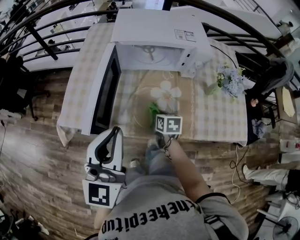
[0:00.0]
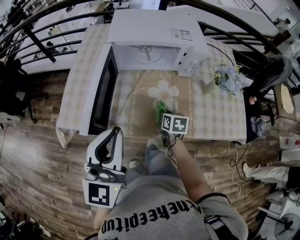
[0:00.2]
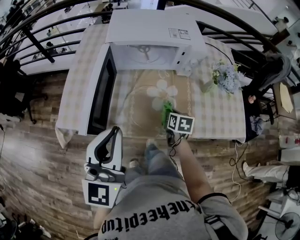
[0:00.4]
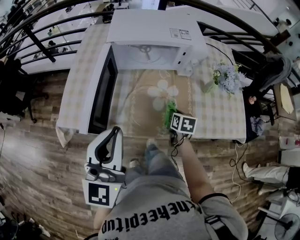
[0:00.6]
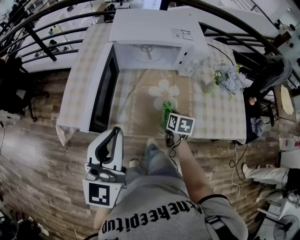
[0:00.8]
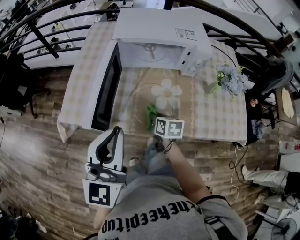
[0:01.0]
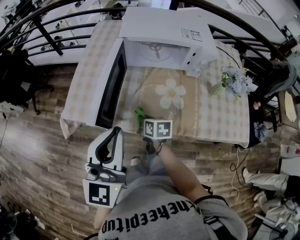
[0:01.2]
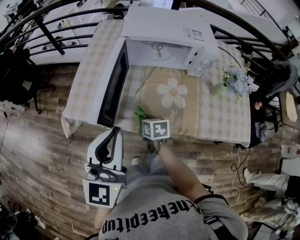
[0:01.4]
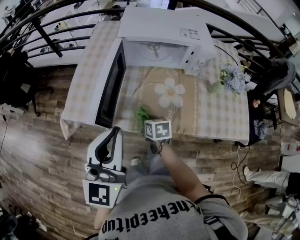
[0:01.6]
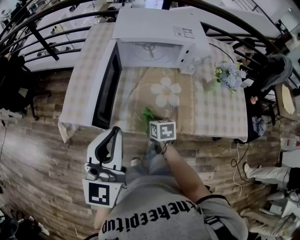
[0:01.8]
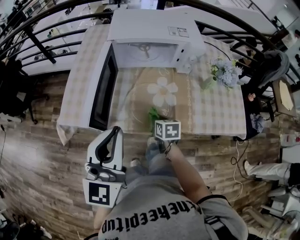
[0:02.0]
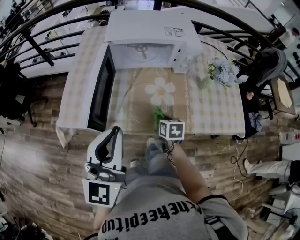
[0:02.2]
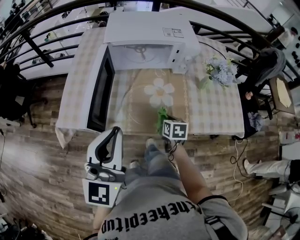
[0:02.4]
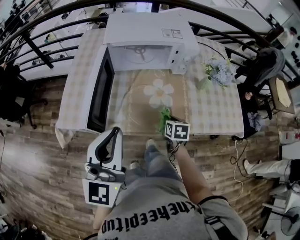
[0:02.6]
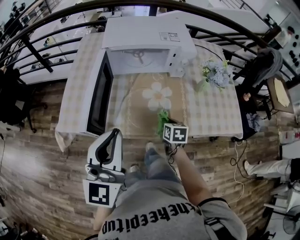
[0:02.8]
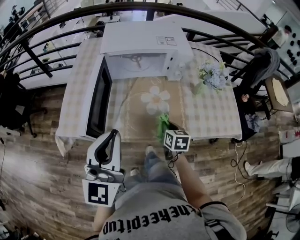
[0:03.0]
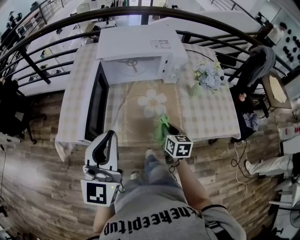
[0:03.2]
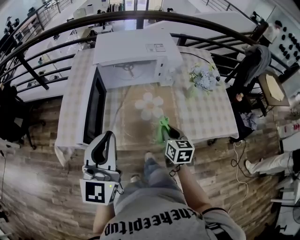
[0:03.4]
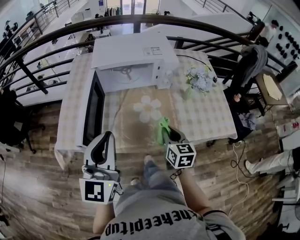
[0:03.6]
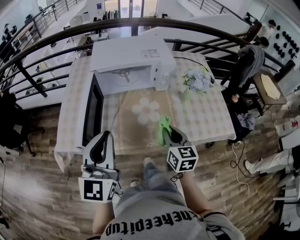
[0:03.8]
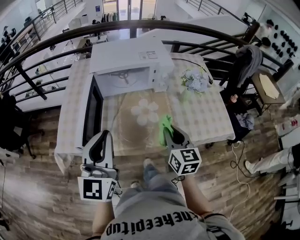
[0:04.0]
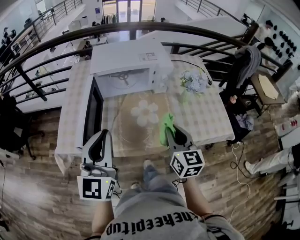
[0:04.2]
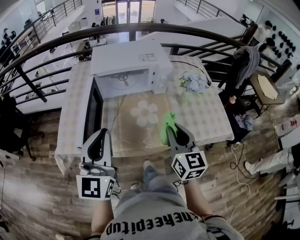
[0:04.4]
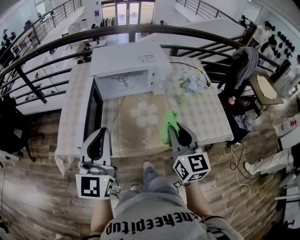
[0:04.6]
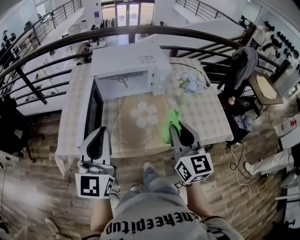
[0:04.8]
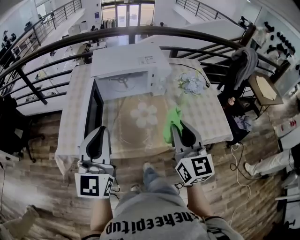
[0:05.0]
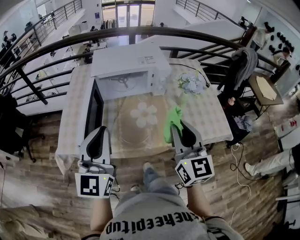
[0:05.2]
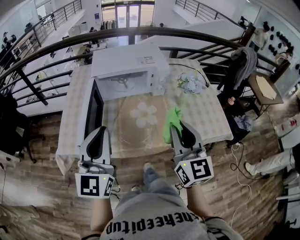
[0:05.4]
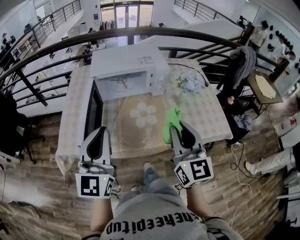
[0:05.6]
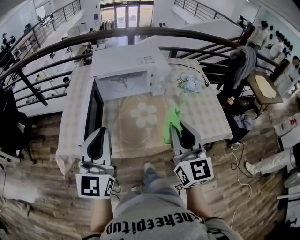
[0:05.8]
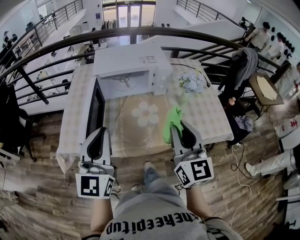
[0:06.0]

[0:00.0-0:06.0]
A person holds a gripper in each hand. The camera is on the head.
0.0 to 1.6 s: The right gripper travels to the left by roughly 10 cm.
1.6 to 3.0 s: The right gripper shifts roughly 15 cm to the right, and rotates approximately 20 degrees.
3.0 to 4.4 s: The right gripper heads upward, covering about 25 cm, and angles its fingers upward, by about 30 degrees.
4.4 to 6.0 s: The right gripper travels upward by some 10 cm.

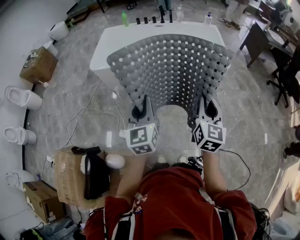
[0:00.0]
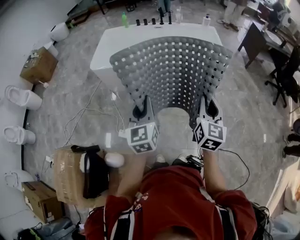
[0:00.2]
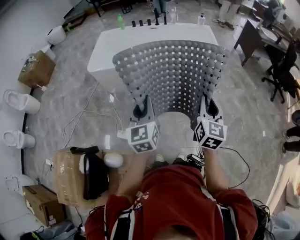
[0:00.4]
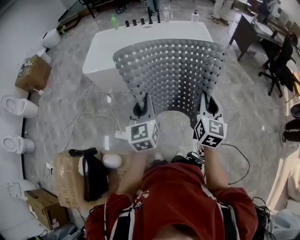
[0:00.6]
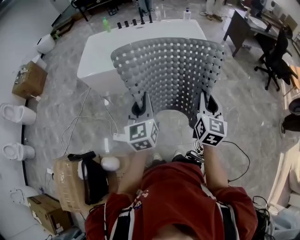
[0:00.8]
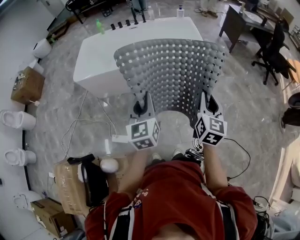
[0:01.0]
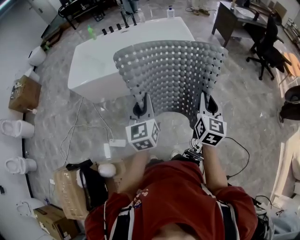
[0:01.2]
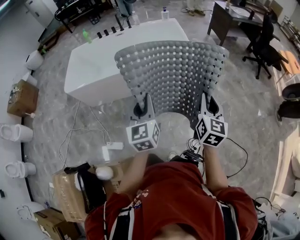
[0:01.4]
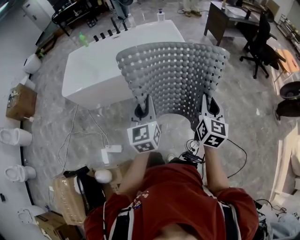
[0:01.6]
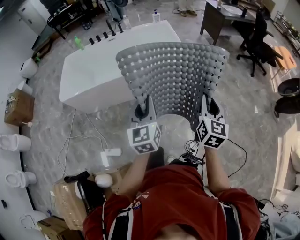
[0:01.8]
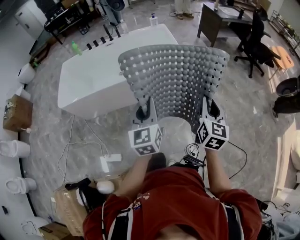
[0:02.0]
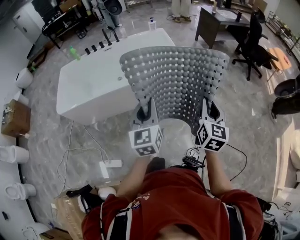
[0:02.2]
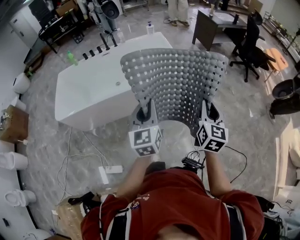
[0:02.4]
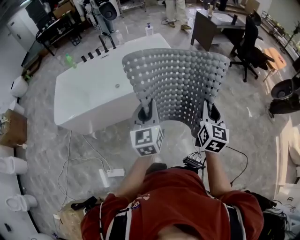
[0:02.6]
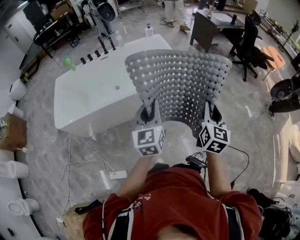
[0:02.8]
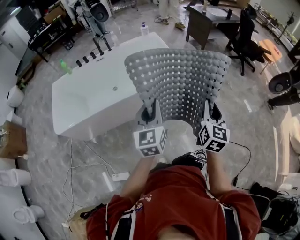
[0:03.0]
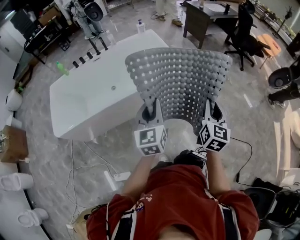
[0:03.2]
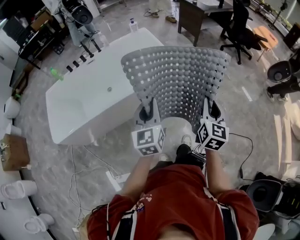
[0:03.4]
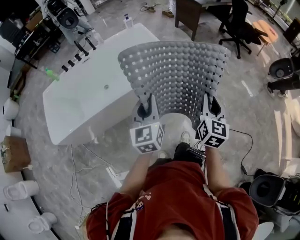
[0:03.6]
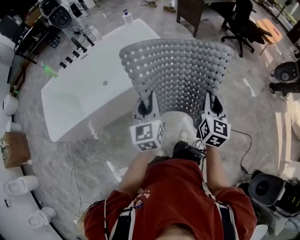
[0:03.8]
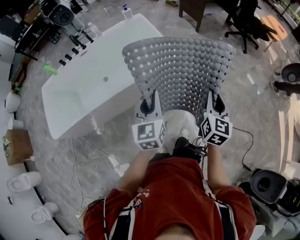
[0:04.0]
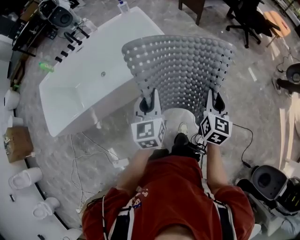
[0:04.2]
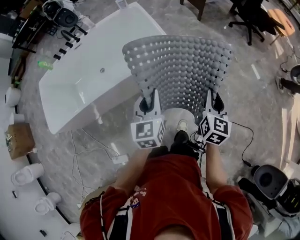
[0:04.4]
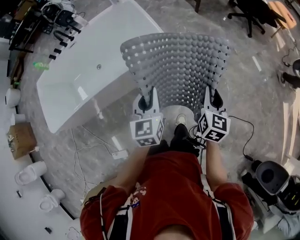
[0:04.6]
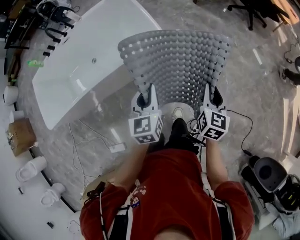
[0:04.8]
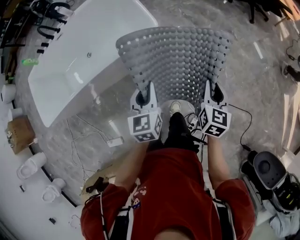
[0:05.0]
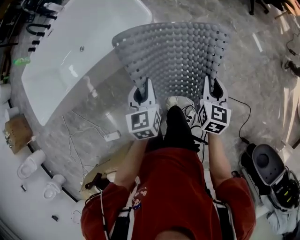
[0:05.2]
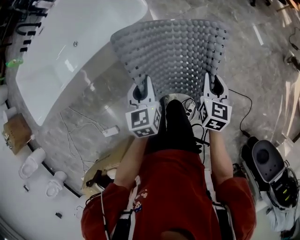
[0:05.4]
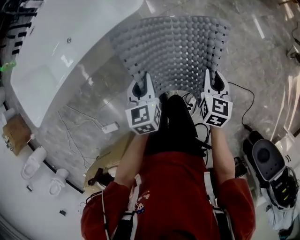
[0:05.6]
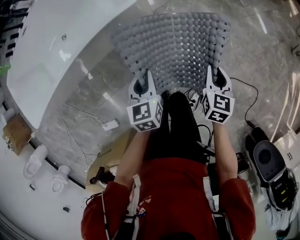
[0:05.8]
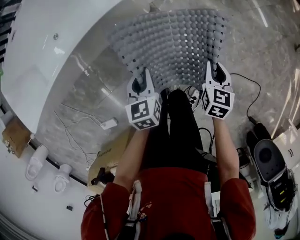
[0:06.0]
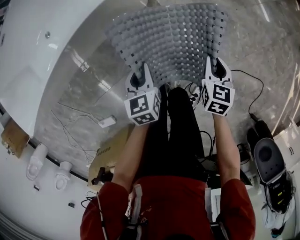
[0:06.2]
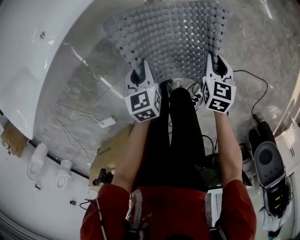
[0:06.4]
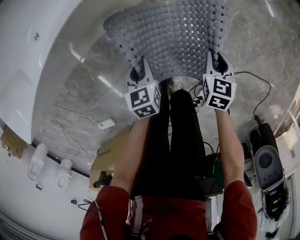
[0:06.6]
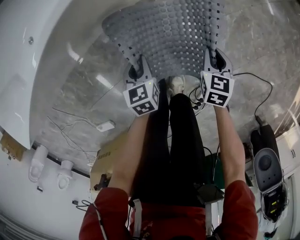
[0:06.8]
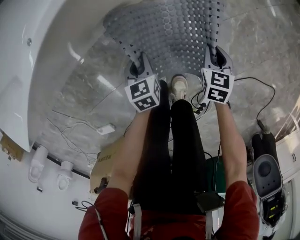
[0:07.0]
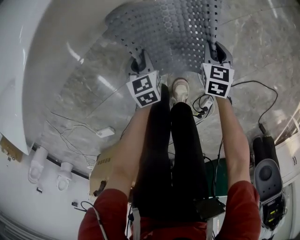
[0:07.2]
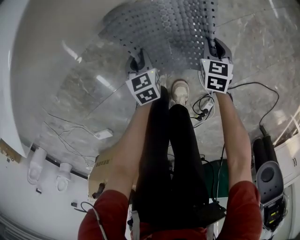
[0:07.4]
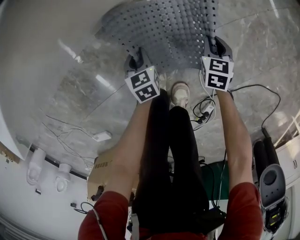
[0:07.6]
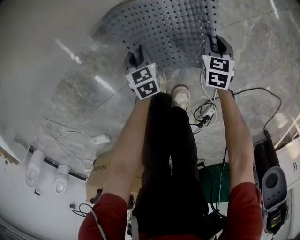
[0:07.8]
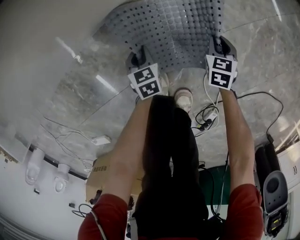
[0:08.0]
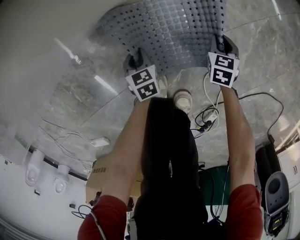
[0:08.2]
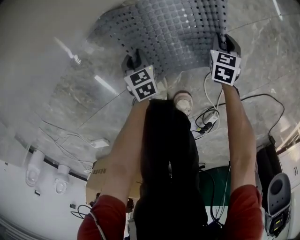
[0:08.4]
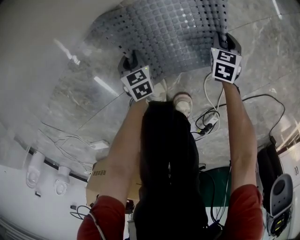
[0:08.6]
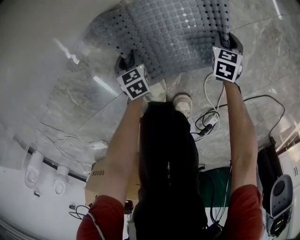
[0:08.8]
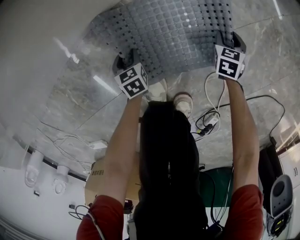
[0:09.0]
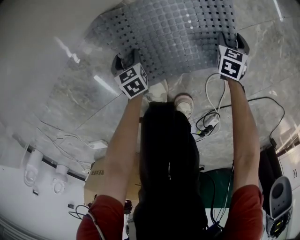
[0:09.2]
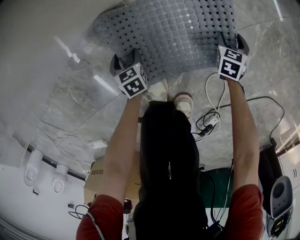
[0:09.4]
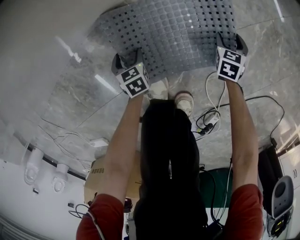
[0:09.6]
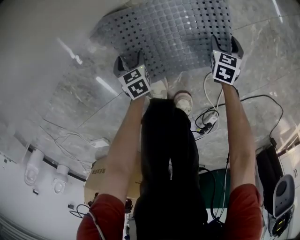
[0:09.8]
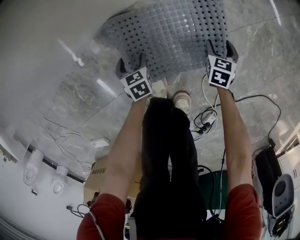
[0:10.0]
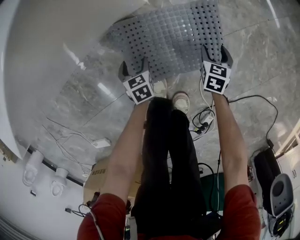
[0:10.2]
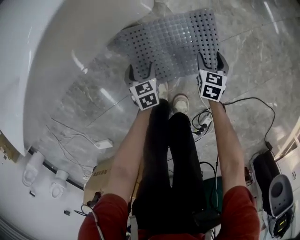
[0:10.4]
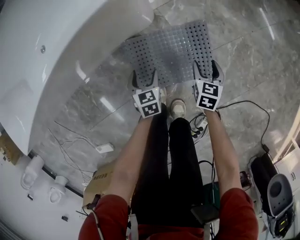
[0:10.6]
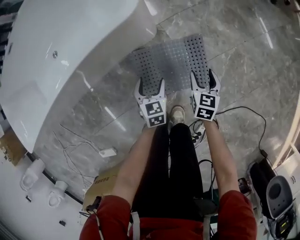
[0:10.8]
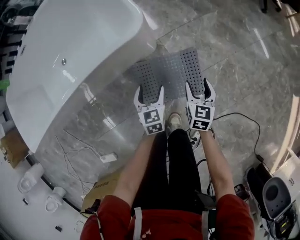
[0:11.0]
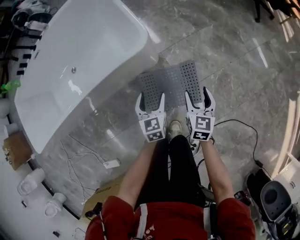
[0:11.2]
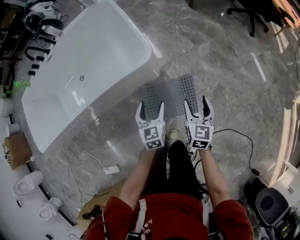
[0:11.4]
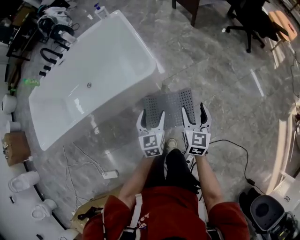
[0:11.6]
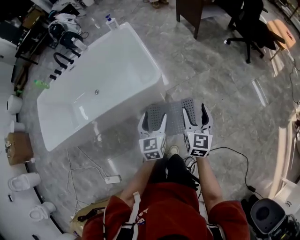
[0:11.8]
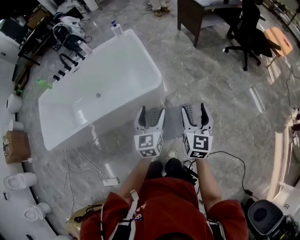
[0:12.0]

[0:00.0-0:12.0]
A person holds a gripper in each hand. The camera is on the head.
0.0 to 1.6 s: Both grippers travel together to the right, approximately 25 cm.
1.6 to 3.0 s: Both grippers travel together forward and to the left, approximately 15 cm.
3.0 to 4.4 s: Both grippers move forward, to the right and downward, approximately 25 cm.
4.4 to 6.0 s: The grippers both shift downward by approximately 40 cm. The right gripper changes its angle by about 30 degrees. The left gripper turns by about 30 degrees.
6.0 to 7.6 s: The two grippers go about 40 cm downward.
7.6 to 9.0 s: The left gripper goes some 15 cm downward and to the left, and opens up. The right gripper moves downward and to the right, some 15 cm, and opens up.
9.0 to 10.4 s: The two grippers go approximately 15 cm upward. The left gripper opens its fingers.
10.4 to 12.0 s: Both grippers travel together upward, some 70 cm. The left gripper points its fingers about 40 degrees further upward. Meanwhile the right gripper angles its fingers upward, by approximately 40 degrees.

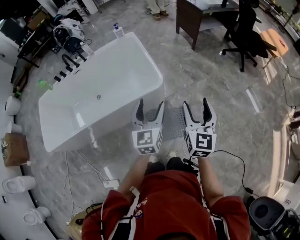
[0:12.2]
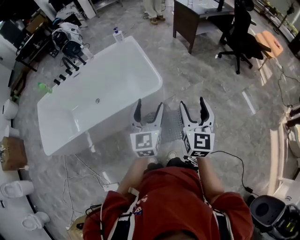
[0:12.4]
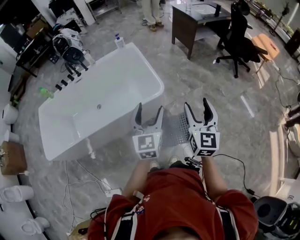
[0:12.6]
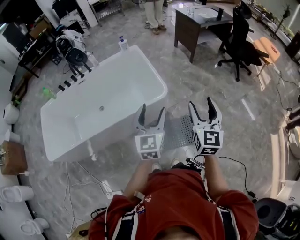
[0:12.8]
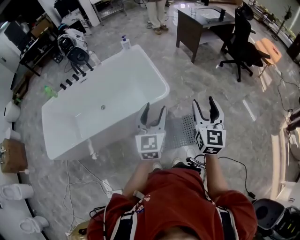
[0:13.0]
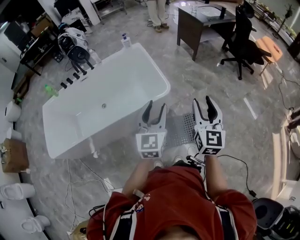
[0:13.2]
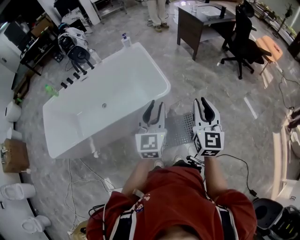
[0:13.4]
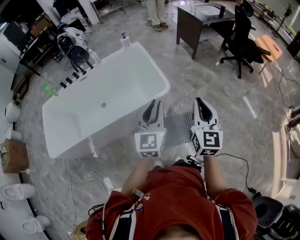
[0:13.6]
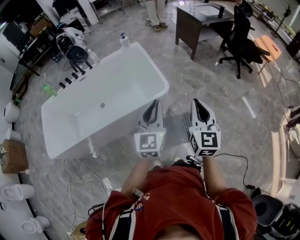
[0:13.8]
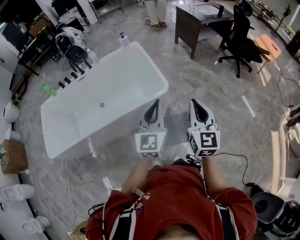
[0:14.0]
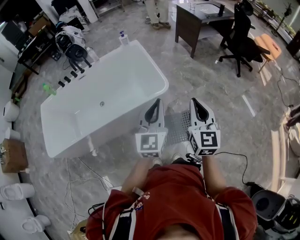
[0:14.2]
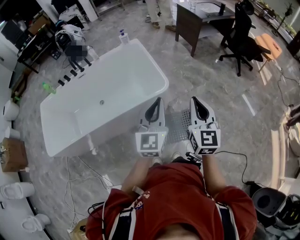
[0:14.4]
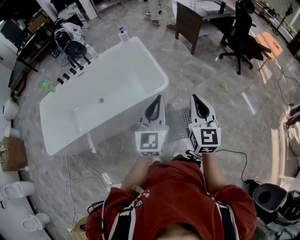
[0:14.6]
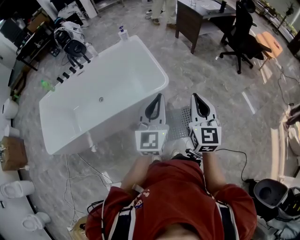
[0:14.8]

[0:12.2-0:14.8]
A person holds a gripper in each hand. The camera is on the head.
12.2 to 13.4 s: The left gripper travels upward by some 5 cm, and closes up, while the right gripper travels upward and to the left by about 10 cm, and closes up.
13.4 to 14.8 s: The grippers move only a little.

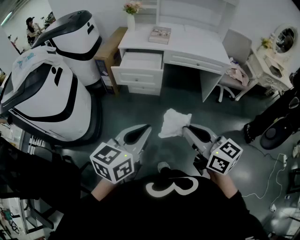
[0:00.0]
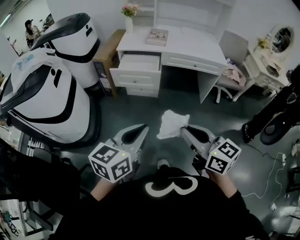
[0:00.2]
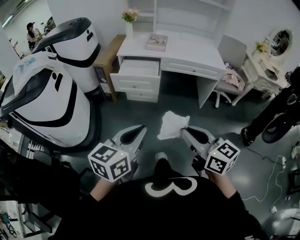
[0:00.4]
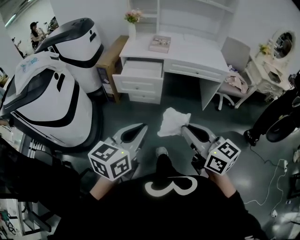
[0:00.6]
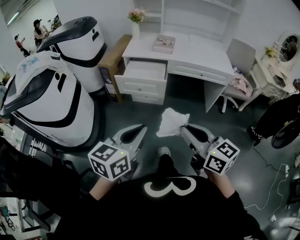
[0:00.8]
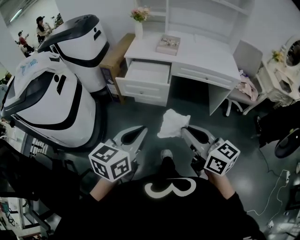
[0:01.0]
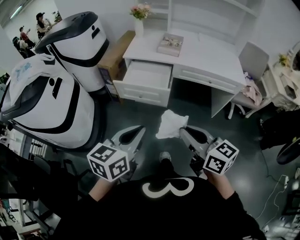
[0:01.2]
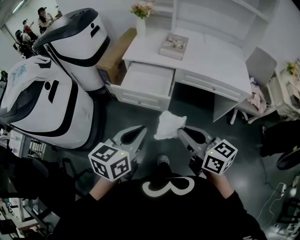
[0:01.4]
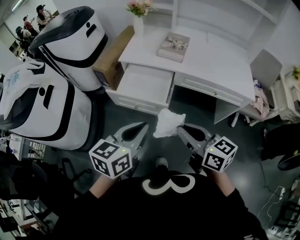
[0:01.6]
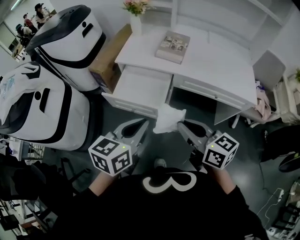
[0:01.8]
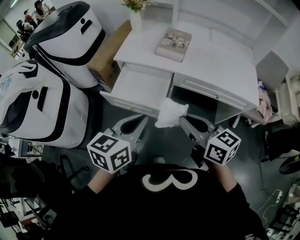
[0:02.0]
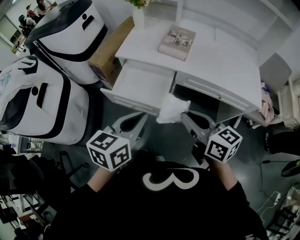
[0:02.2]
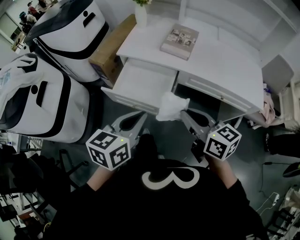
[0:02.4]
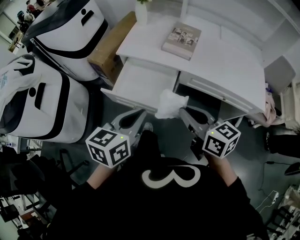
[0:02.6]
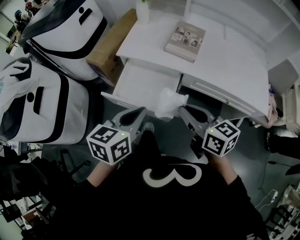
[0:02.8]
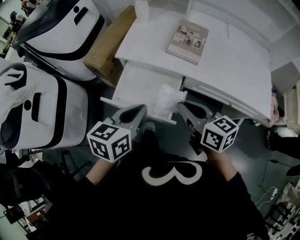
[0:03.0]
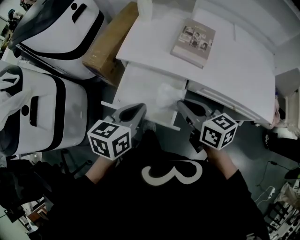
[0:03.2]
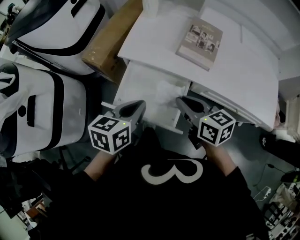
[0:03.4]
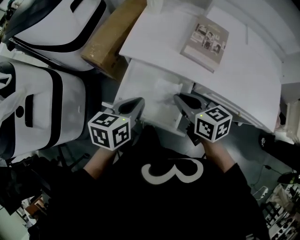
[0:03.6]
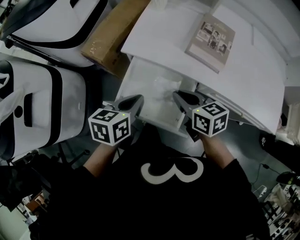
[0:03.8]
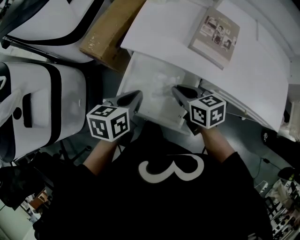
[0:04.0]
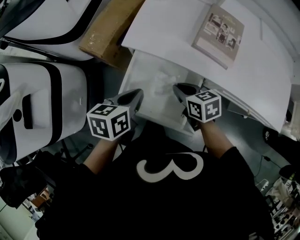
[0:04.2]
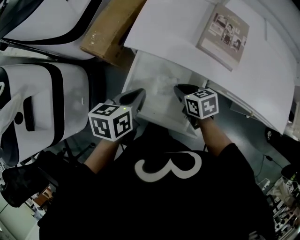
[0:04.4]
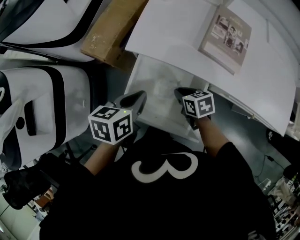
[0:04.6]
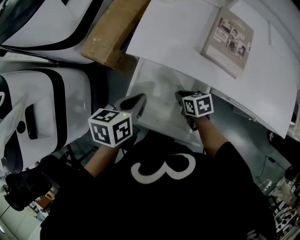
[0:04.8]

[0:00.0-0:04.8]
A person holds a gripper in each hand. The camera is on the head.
0.0 to 1.6 s: The grippers both shift forward by approximately 35 cm.
1.6 to 3.2 s: The two grippers go roughly 30 cm forward.
3.2 to 4.8 s: The left gripper travels forward, downward and to the left by some 20 cm. Meanwhile the right gripper shifts roughly 30 cm downward and forward, and tips its fingers downward by roughly 30 degrees.
